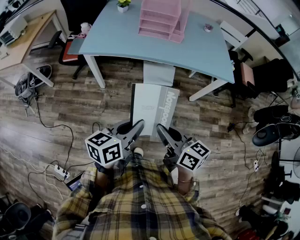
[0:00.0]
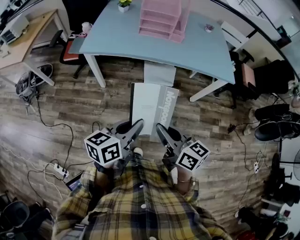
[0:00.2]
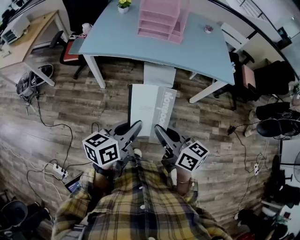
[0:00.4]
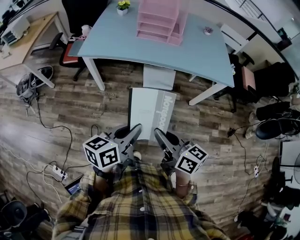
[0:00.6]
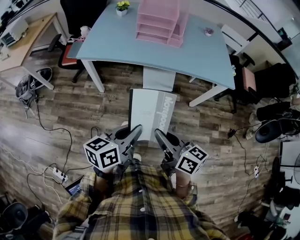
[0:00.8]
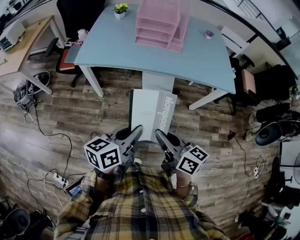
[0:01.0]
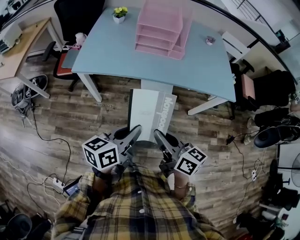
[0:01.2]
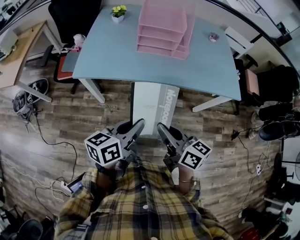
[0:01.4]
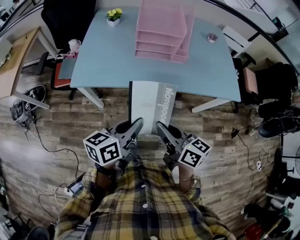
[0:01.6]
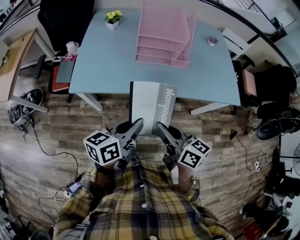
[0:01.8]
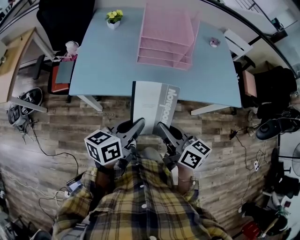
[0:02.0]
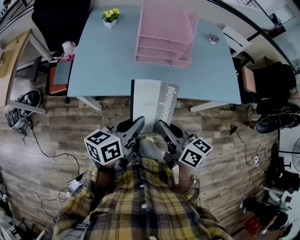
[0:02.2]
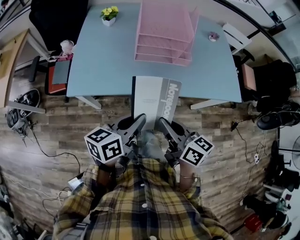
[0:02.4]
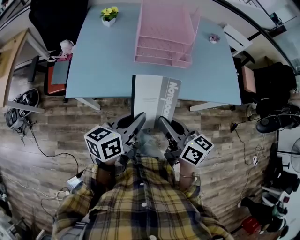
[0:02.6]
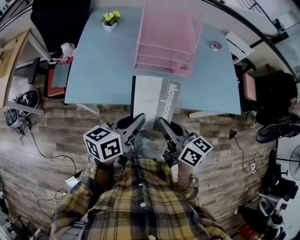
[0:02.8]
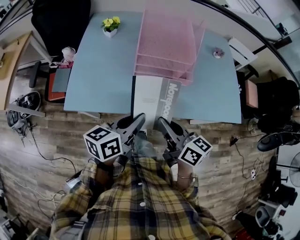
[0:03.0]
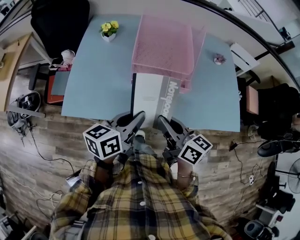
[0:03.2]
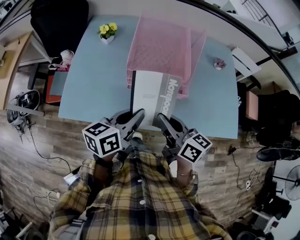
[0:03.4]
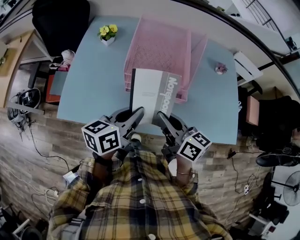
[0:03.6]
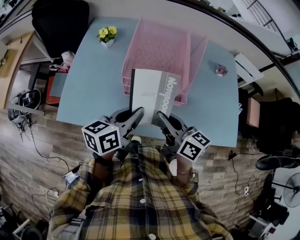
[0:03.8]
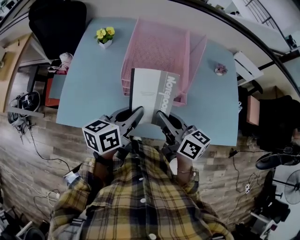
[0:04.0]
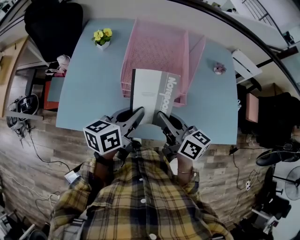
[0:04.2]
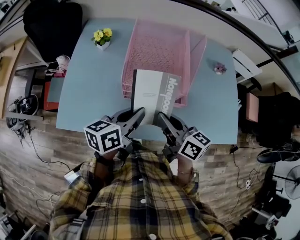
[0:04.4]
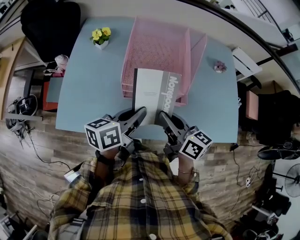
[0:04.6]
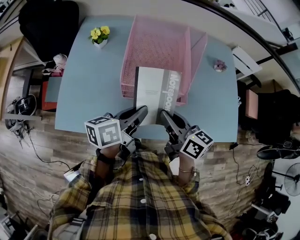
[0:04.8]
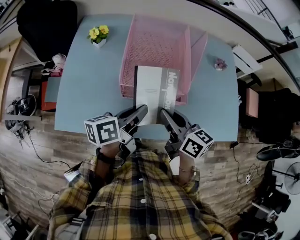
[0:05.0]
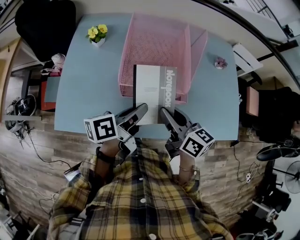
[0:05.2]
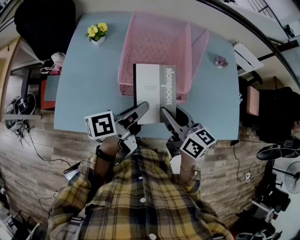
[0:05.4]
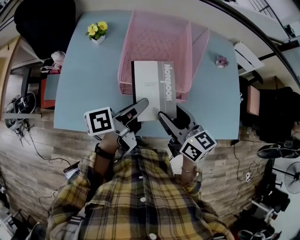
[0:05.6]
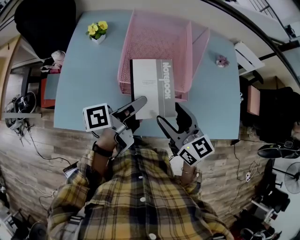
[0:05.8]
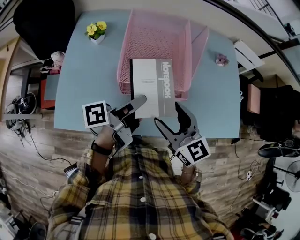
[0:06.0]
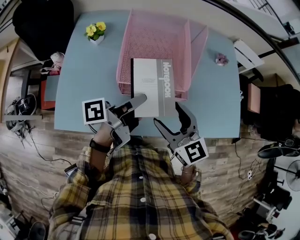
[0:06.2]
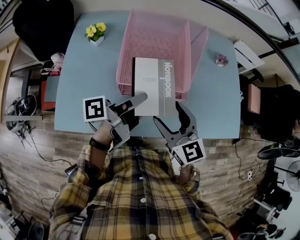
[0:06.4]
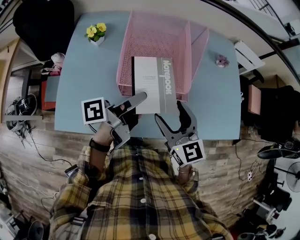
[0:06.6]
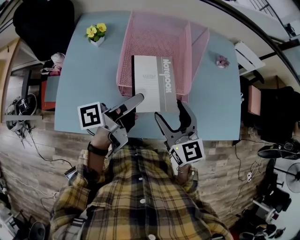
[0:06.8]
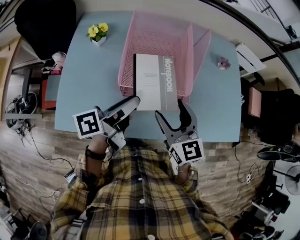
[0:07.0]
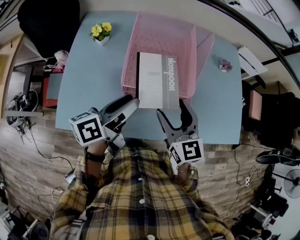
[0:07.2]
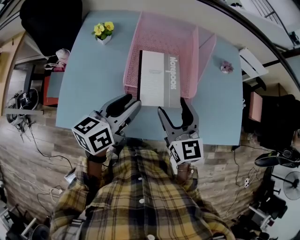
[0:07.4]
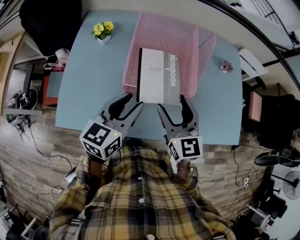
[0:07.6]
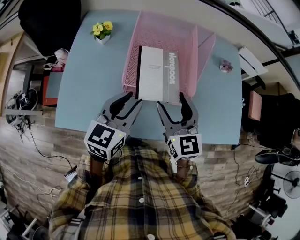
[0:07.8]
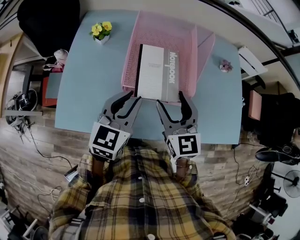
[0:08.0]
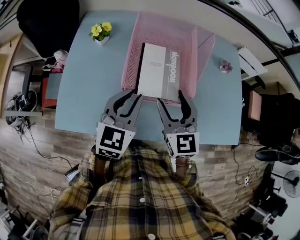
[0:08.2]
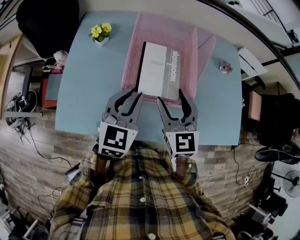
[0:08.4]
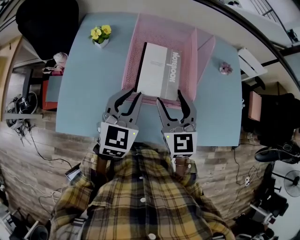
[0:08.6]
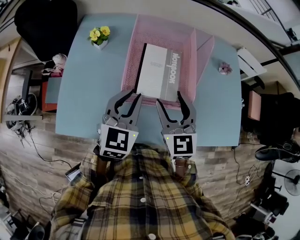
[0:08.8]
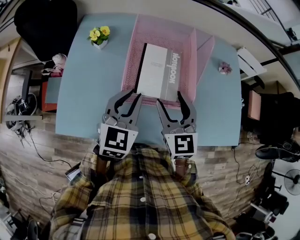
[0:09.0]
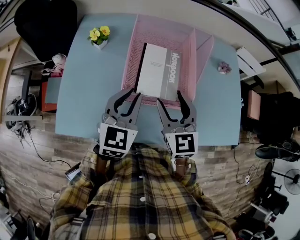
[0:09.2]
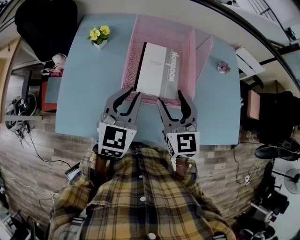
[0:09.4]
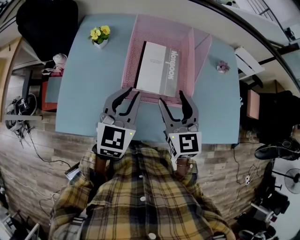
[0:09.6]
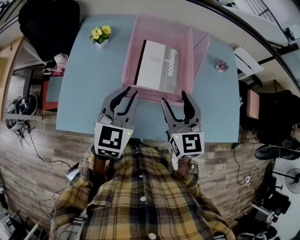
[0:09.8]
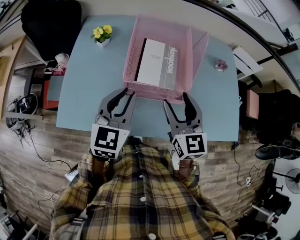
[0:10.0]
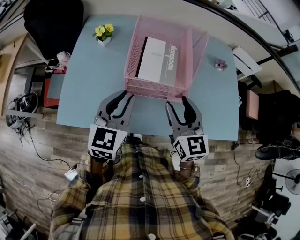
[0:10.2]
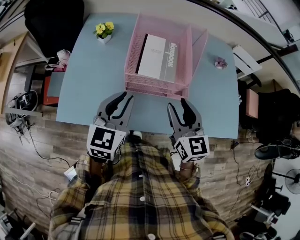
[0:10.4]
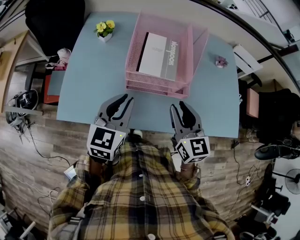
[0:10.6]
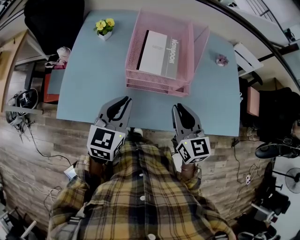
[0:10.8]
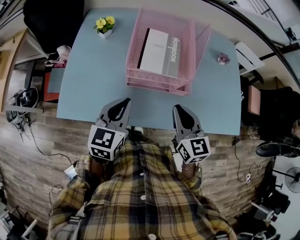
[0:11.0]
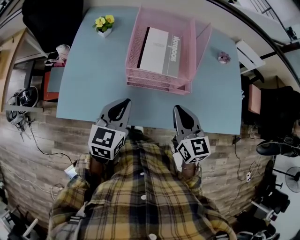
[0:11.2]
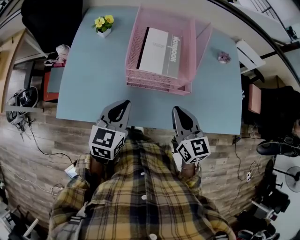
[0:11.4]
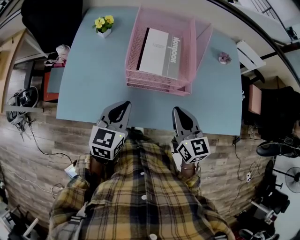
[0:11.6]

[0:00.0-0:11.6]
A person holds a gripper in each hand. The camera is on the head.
0:00.0 to 0:01.4: The grippers both shift forward by some 20 cm.
0:01.4 to 0:02.8: Both grippers travel together forward, approximately 15 cm.
0:02.8 to 0:04.4: Both grippers move forward, about 20 cm.
0:04.4 to 0:05.8: The left gripper swivels roughly 40 degrees. Meanwhile the right gripper turns by about 20 degrees, and opens up.
0:05.8 to 0:07.2: The left gripper is displaced to the left by roughly 5 cm, swivels some 30 degrees, and opens.
0:07.2 to 0:08.8: The left gripper rolls clockwise, seen from behind, by approximately 60 degrees, and closes.
0:08.8 to 0:10.2: The two grippers go approximately 5 cm backward.
0:10.2 to 0:11.6: Both grippers move downward, about 5 cm. The right gripper closes up.

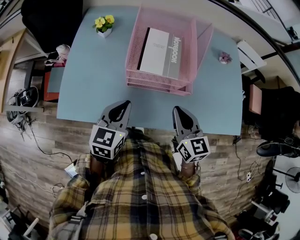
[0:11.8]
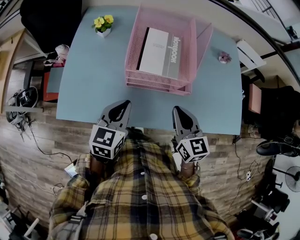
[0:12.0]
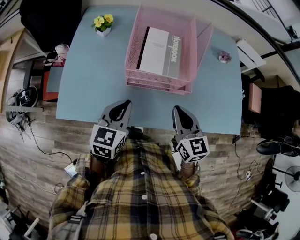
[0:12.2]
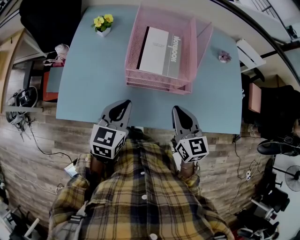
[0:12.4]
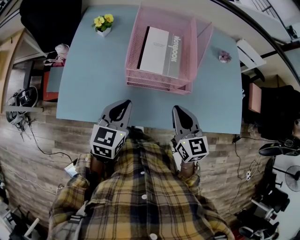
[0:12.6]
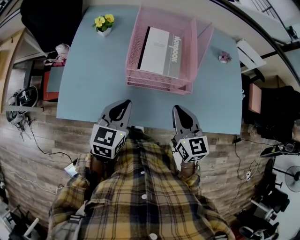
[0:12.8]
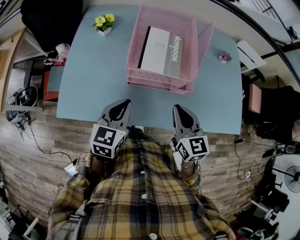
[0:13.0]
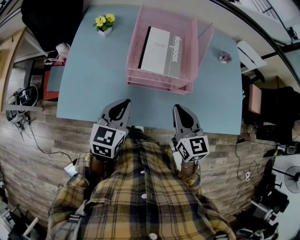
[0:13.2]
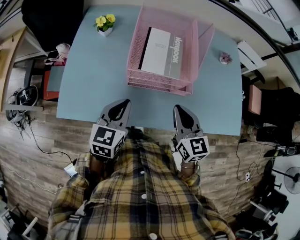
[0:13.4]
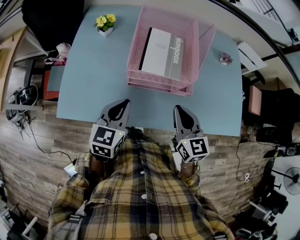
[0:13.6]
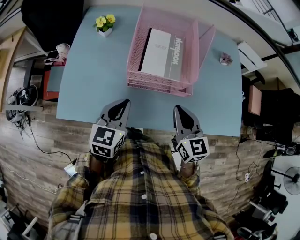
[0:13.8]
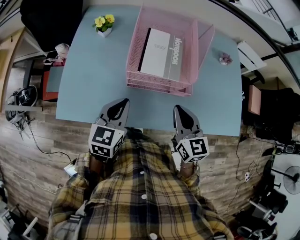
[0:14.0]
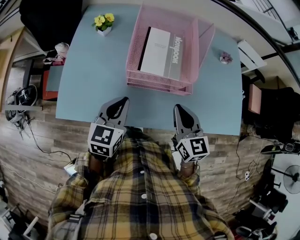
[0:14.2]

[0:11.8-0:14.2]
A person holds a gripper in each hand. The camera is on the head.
0:11.8 to 0:13.0: Both grippers stay put.
0:13.0 to 0:14.2: The grippers make only small movements.

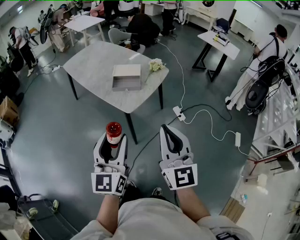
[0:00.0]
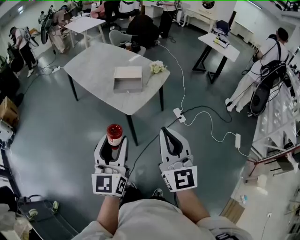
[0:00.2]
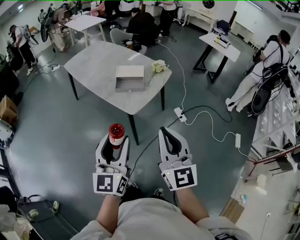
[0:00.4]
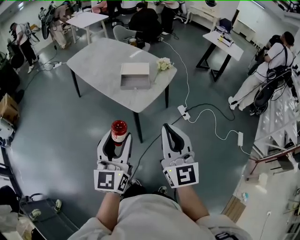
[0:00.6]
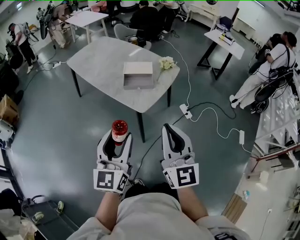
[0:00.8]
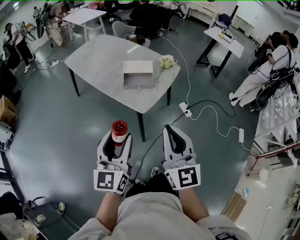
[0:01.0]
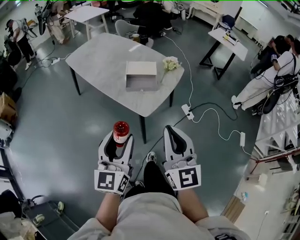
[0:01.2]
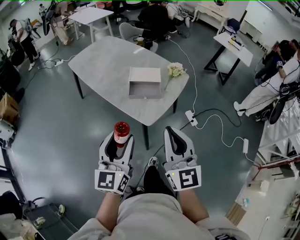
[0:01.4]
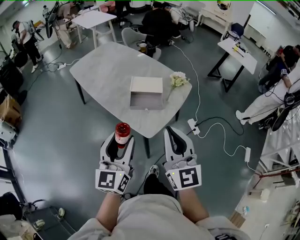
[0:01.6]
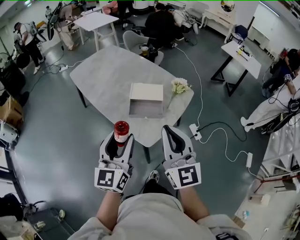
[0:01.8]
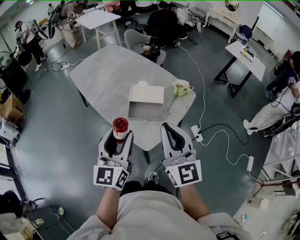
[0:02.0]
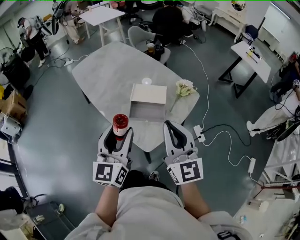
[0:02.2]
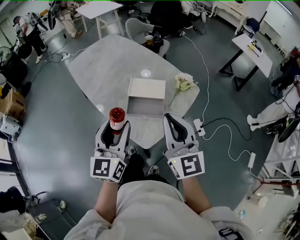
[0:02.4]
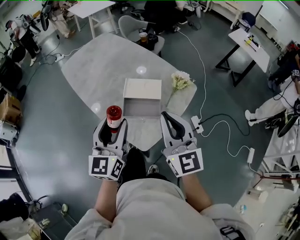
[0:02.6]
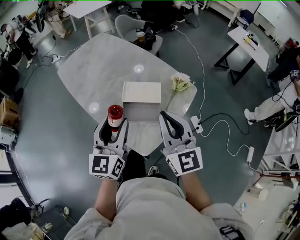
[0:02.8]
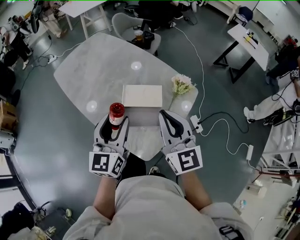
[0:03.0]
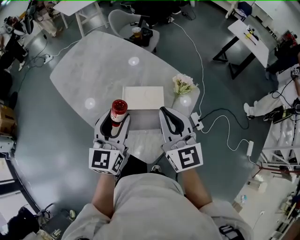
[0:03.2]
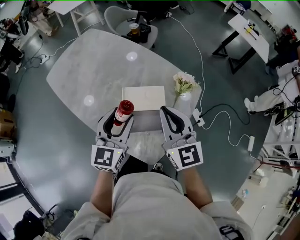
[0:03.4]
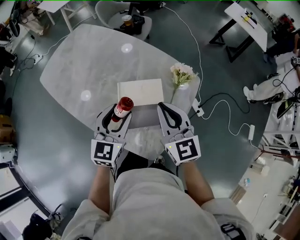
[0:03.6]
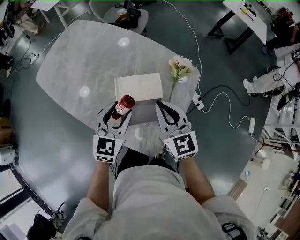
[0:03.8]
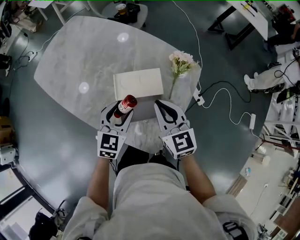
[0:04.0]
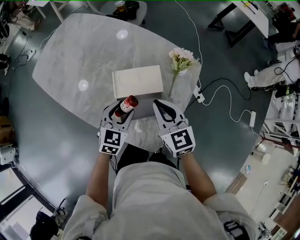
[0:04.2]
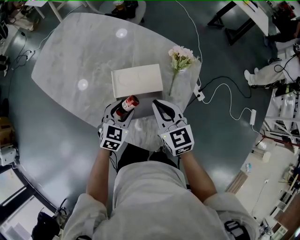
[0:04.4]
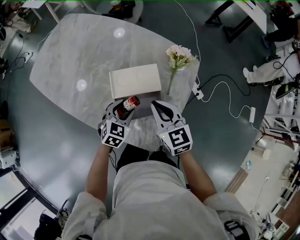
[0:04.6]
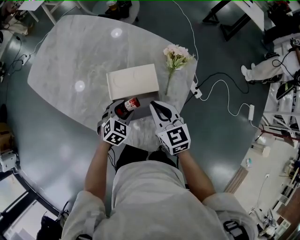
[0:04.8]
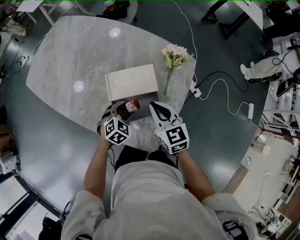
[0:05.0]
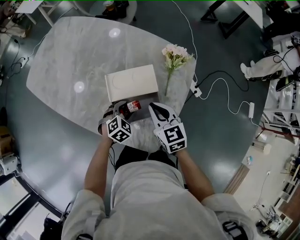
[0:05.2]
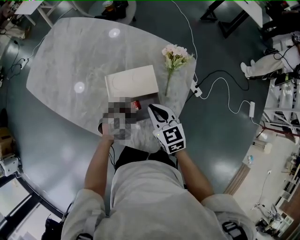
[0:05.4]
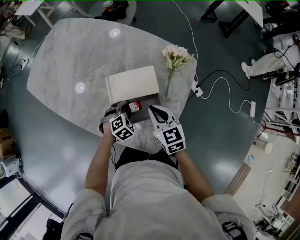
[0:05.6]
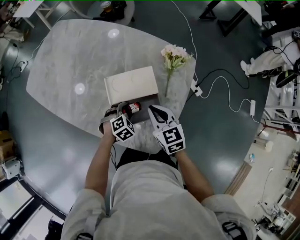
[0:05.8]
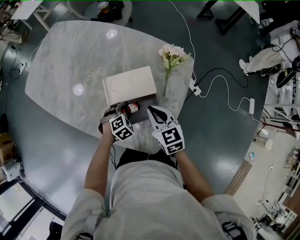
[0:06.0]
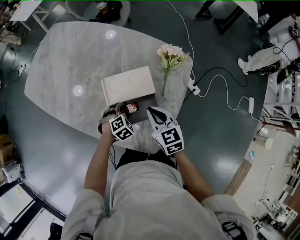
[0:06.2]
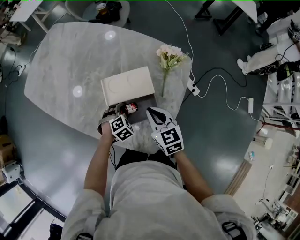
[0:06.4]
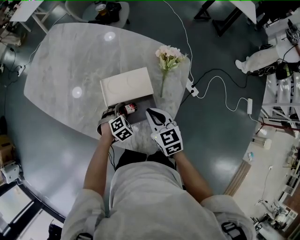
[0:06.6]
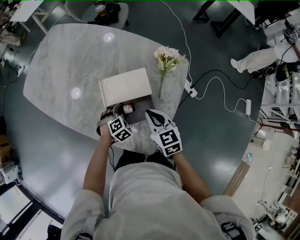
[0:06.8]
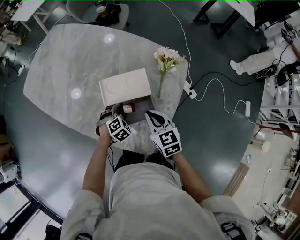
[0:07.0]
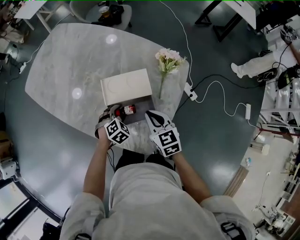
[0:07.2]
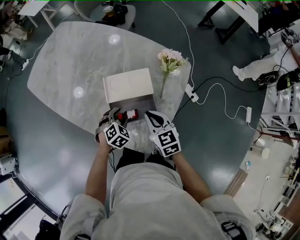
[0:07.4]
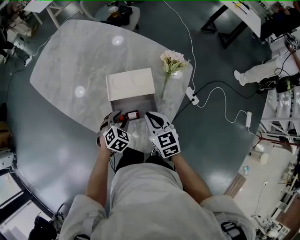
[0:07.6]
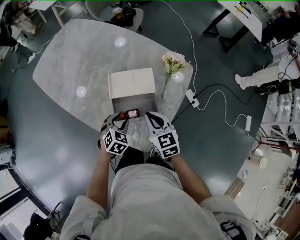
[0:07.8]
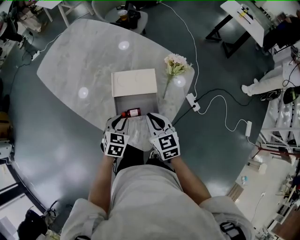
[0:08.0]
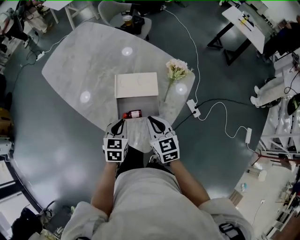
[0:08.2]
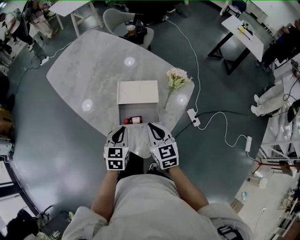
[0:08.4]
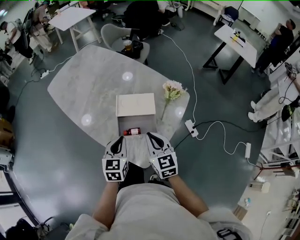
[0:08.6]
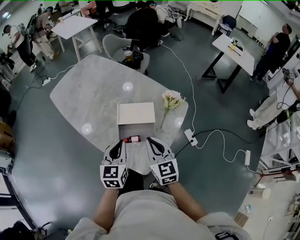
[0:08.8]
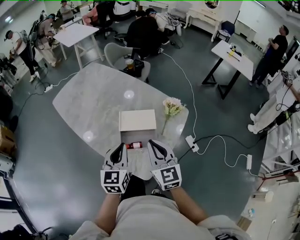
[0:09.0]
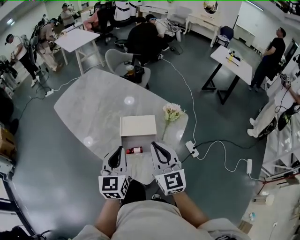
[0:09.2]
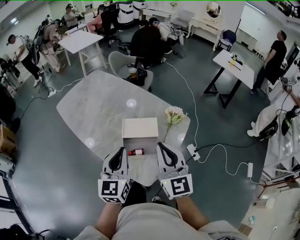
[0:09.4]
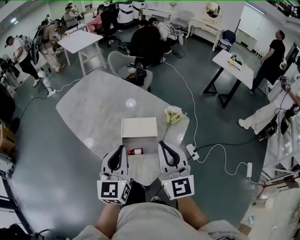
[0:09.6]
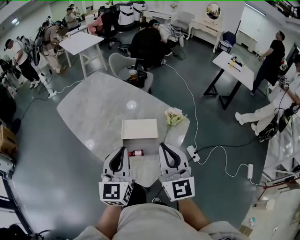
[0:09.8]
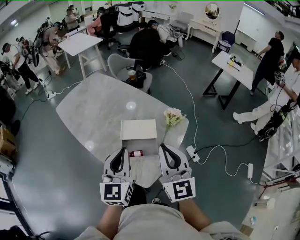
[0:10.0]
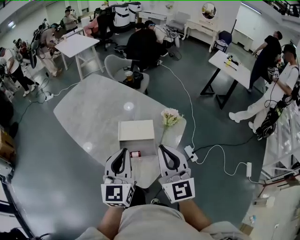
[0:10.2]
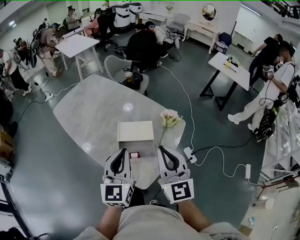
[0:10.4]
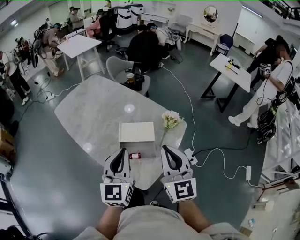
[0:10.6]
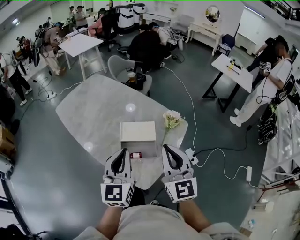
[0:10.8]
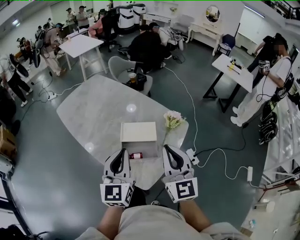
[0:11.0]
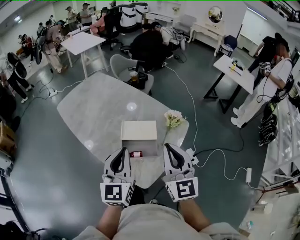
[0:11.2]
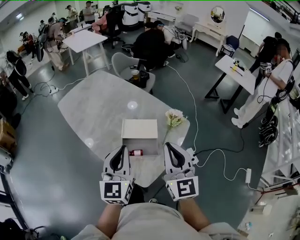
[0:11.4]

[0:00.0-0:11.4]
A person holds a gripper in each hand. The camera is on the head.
0:00.0 to 0:01.4: The two grippers go about 20 cm forward and to the left.
0:01.4 to 0:02.8: Both grippers move forward, roughly 30 cm.
0:02.8 to 0:04.2: Both grippers move downward and forward, approximately 25 cm. The right gripper rotates approximately 20 degrees. Meanwhile the left gripper tilts its fingers roughly 30 degrees downward.
0:04.2 to 0:05.6: The right gripper is displaced downward by approximately 10 cm. The left gripper travels downward by approximately 15 cm, and tips its fingers downward by some 30 degrees.
0:05.6 to 0:07.2: The grippers stay close to where they were, moving slightly.
0:07.2 to 0:08.6: The right gripper moves upward and backward, about 10 cm, while the left gripper heads upward and backward, covering approximately 20 cm, tilts its fingers about 30 degrees upward, and closes its fingers.
0:08.6 to 0:10.0: The grippers both shift upward by some 20 cm. The left gripper swivels some 30 degrees, while the right gripper swivels roughly 30 degrees.
0:10.0 to 0:11.4: There are only small adjustments of the grippers.
